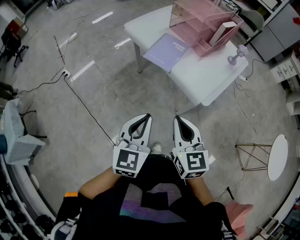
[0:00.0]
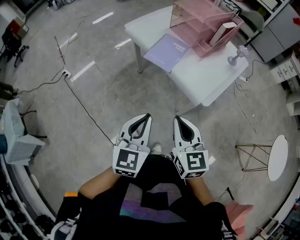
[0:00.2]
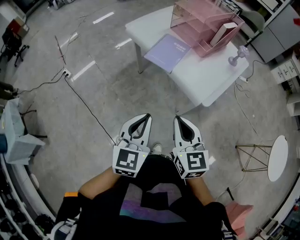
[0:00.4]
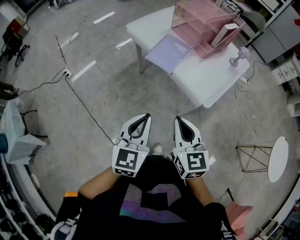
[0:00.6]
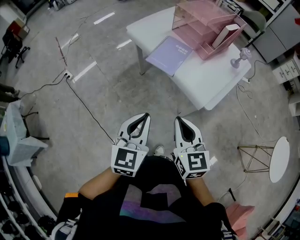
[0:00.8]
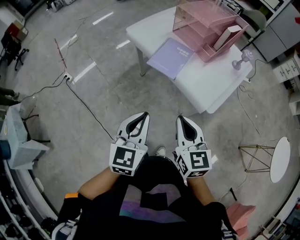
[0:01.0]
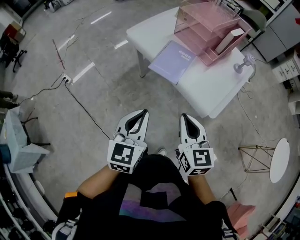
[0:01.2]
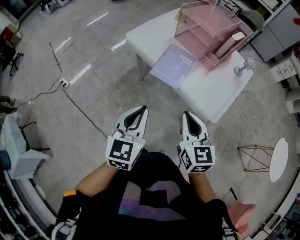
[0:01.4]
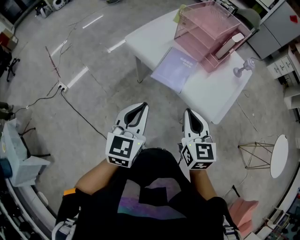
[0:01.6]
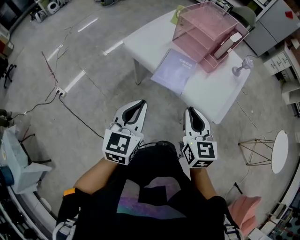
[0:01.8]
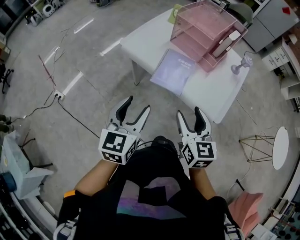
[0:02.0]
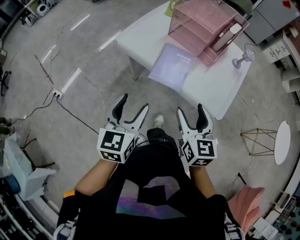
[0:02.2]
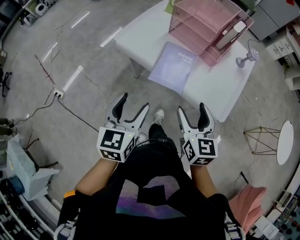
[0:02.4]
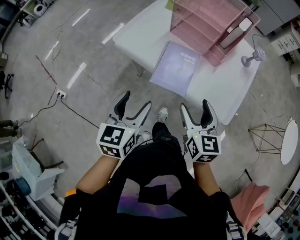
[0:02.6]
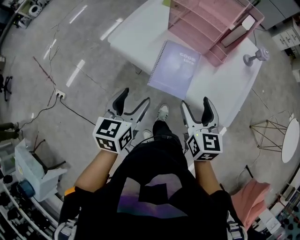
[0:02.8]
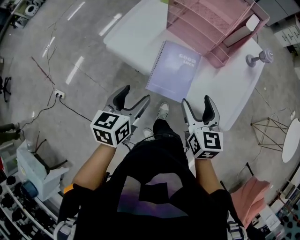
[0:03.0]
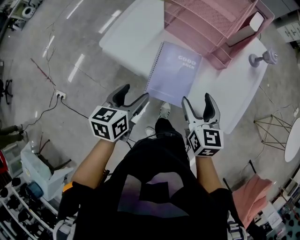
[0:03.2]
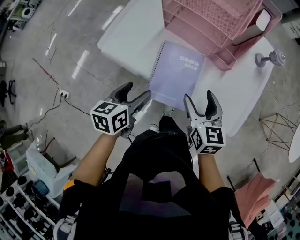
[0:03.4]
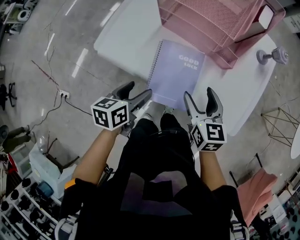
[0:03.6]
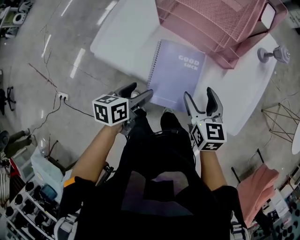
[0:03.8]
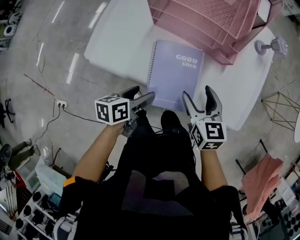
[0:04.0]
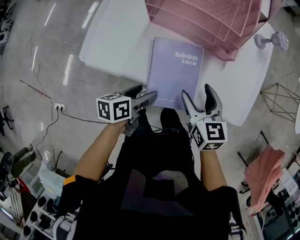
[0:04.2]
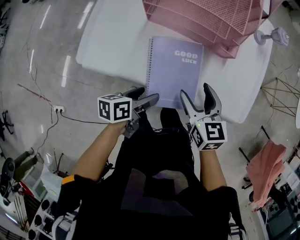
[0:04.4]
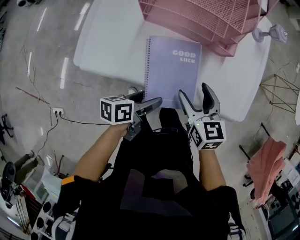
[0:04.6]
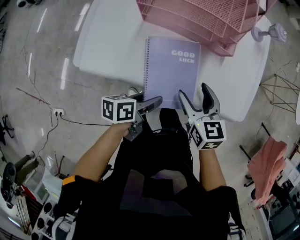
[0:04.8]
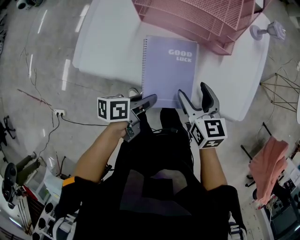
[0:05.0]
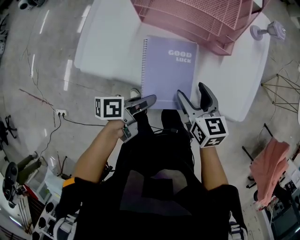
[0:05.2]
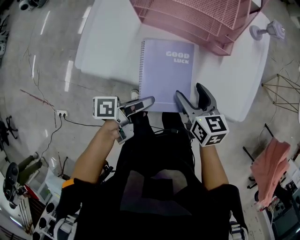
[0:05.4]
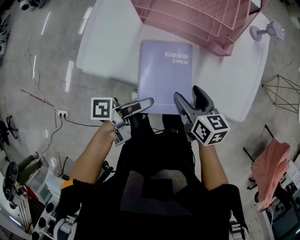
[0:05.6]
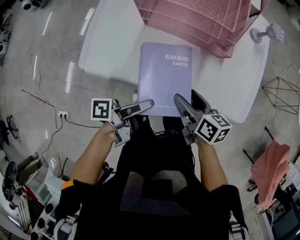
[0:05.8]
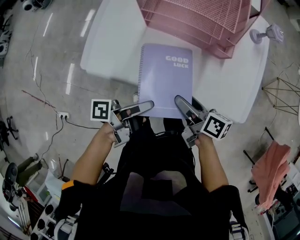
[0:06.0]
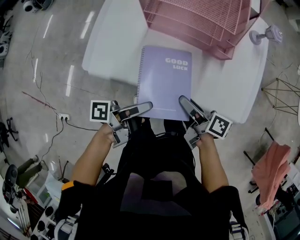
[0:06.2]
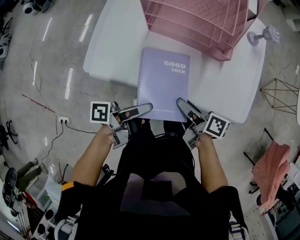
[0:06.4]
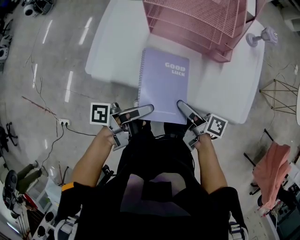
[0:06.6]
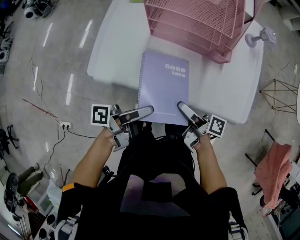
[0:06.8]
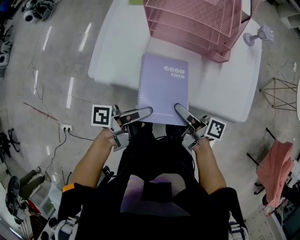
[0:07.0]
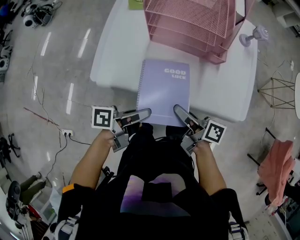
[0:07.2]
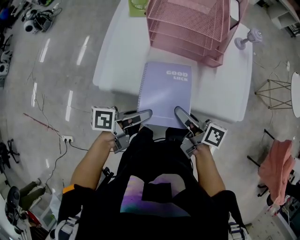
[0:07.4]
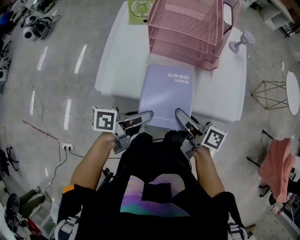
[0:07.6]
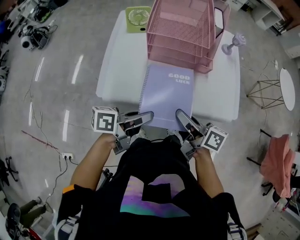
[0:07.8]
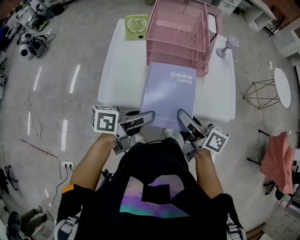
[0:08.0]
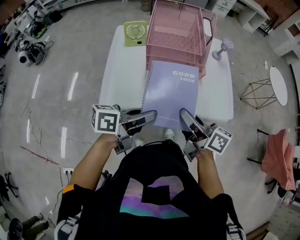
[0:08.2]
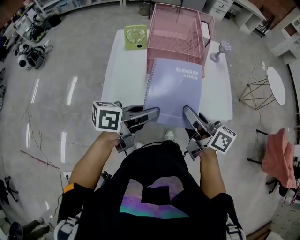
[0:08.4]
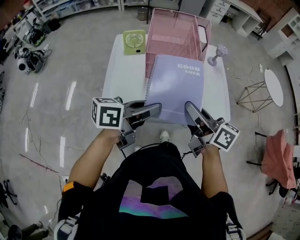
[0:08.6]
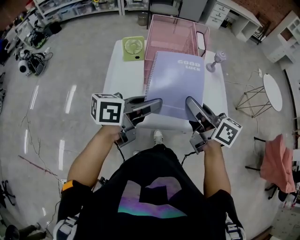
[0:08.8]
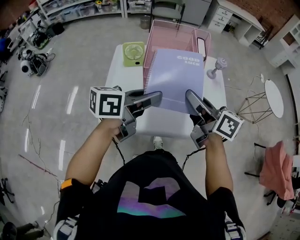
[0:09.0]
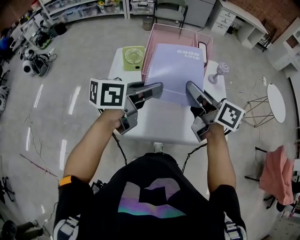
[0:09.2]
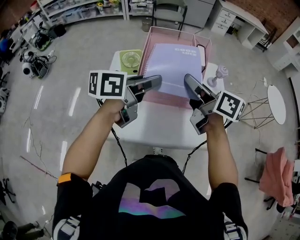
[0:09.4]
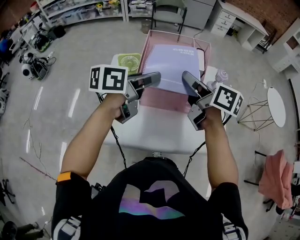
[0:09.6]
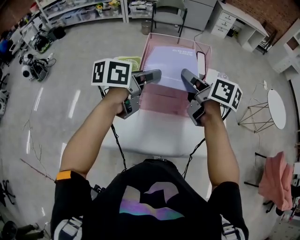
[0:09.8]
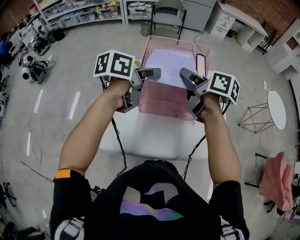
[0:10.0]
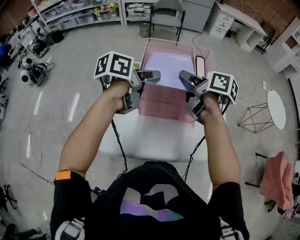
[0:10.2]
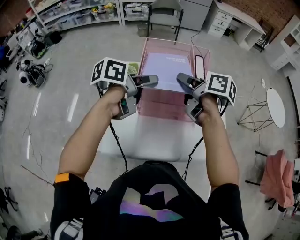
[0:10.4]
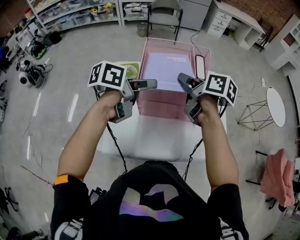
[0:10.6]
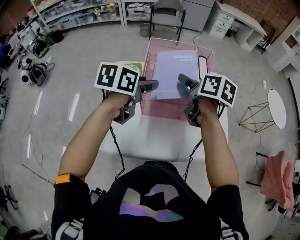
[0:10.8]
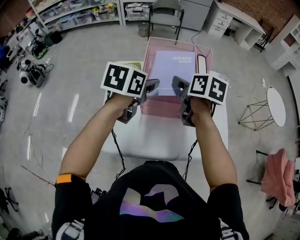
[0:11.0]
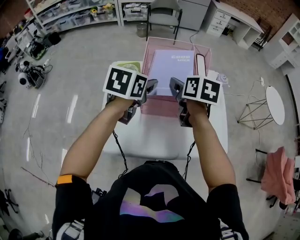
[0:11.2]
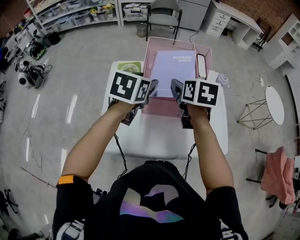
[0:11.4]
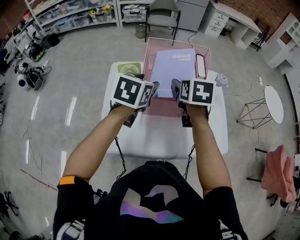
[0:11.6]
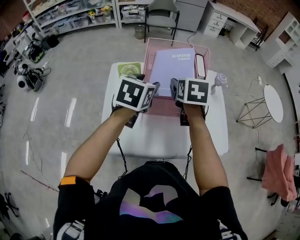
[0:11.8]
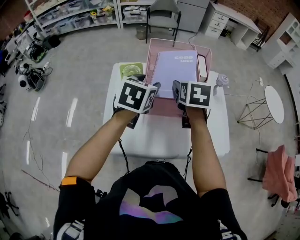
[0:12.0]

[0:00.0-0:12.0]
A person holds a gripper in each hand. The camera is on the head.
0:00.0 to 0:01.6: The right gripper shifts approximately 15 cm forward; the left gripper travels forward and to the left by roughly 20 cm.
0:01.6 to 0:03.0: Both grippers move forward and downward, approximately 20 cm. The right gripper opens up; the left gripper rotates about 30 degrees, and opens its fingers.
0:03.0 to 0:04.4: The left gripper is displaced downward by about 15 cm, and turns by some 50 degrees. The right gripper is displaced downward by about 10 cm.
0:04.4 to 0:06.0: The right gripper twists roughly 50 degrees clockwise, seen from behind; the left gripper heads upward, covering roughly 10 cm, angles its fingers upward, by approximately 30 degrees, and closes.
0:06.0 to 0:07.6: The right gripper travels upward by about 10 cm, and closes. Meanwhile the left gripper travels upward and to the left by about 10 cm, and changes its angle by approximately 30 degrees.
0:07.6 to 0:09.0: The two grippers go roughly 20 cm upward and forward. The right gripper rotates approximately 30 degrees, while the left gripper turns by approximately 30 degrees.
0:09.0 to 0:10.4: Both grippers move forward, approximately 20 cm. The right gripper turns by roughly 30 degrees. The left gripper swivels approximately 20 degrees.
0:10.4 to 0:12.0: The left gripper rotates roughly 50 degrees. The right gripper turns by about 50 degrees, and opens.

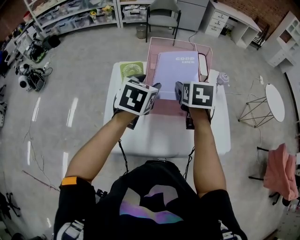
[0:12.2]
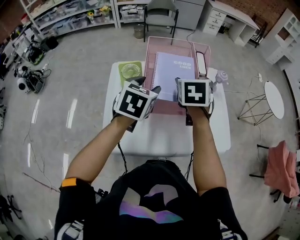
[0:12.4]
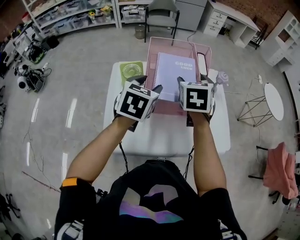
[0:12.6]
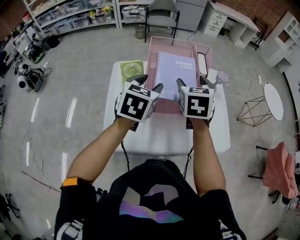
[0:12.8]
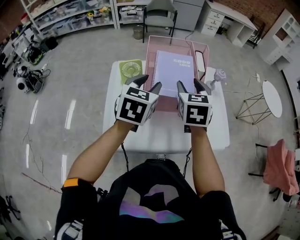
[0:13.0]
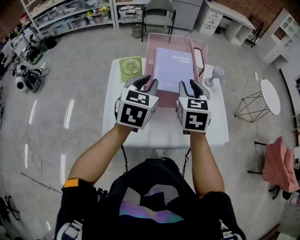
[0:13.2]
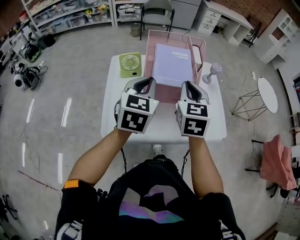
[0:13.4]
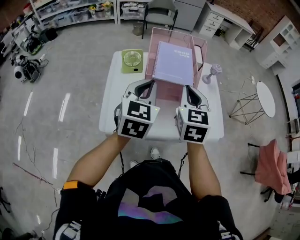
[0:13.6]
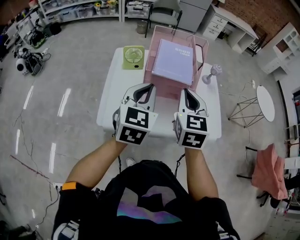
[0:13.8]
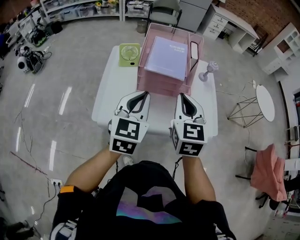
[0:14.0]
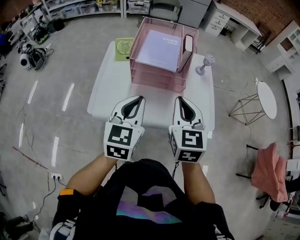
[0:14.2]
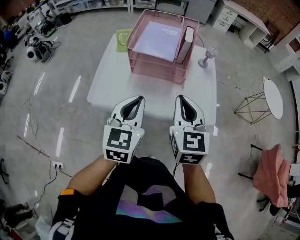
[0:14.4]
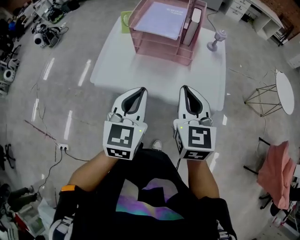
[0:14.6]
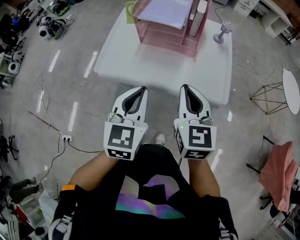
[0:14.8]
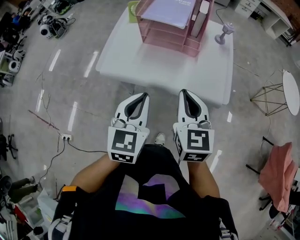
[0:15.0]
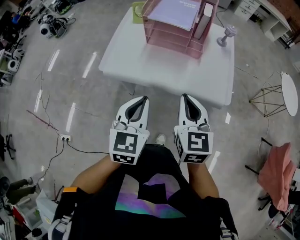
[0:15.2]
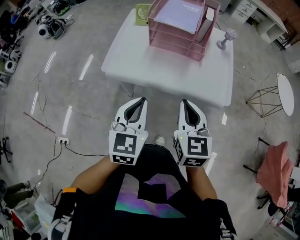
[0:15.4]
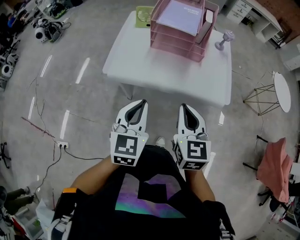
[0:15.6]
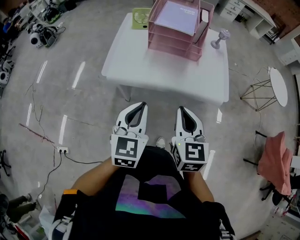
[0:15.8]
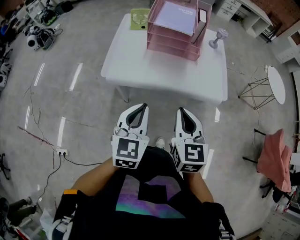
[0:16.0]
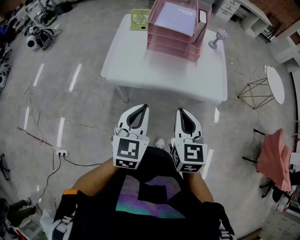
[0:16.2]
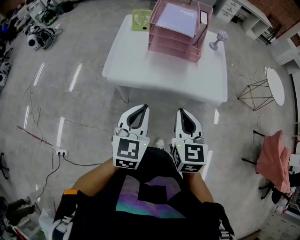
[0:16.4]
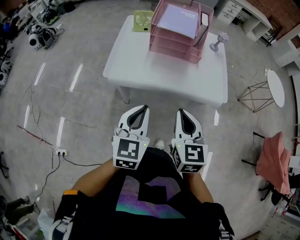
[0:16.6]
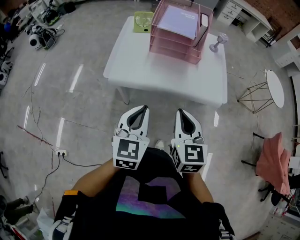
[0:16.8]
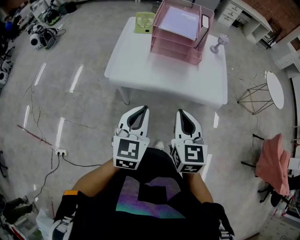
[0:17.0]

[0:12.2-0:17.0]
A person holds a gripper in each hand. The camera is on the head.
0:12.2 to 0:13.8: Both grippers move backward, approximately 15 cm. The left gripper swivels approximately 20 degrees, and closes. The right gripper swivels about 30 degrees, and closes up.
0:13.8 to 0:15.4: The grippers both shift backward by roughly 25 cm.
0:15.4 to 0:17.0: The right gripper goes roughly 10 cm backward and to the left. Meanwhile the left gripper changes place by approximately 5 cm.

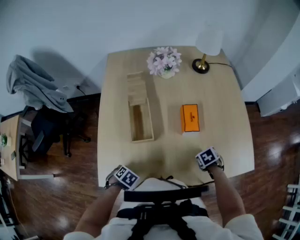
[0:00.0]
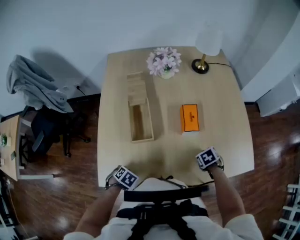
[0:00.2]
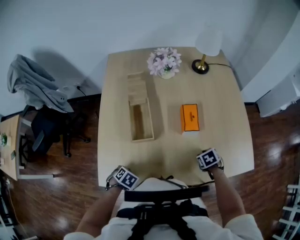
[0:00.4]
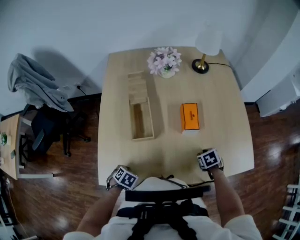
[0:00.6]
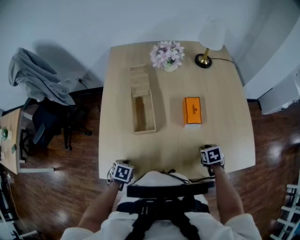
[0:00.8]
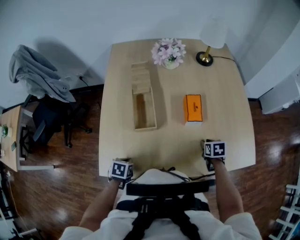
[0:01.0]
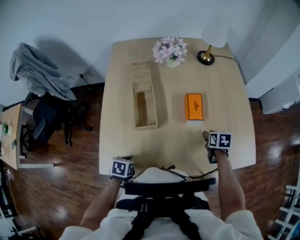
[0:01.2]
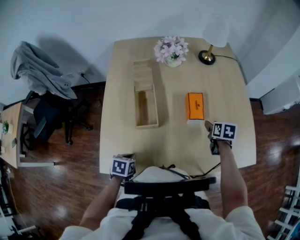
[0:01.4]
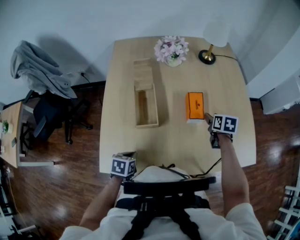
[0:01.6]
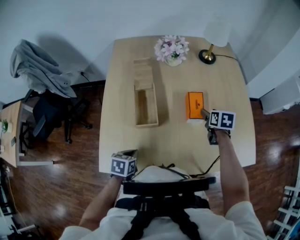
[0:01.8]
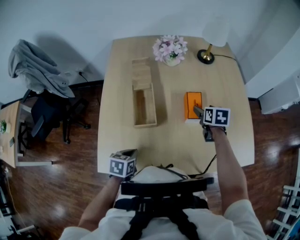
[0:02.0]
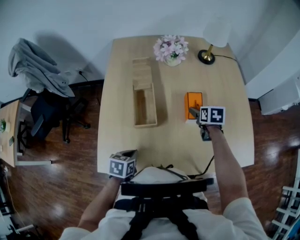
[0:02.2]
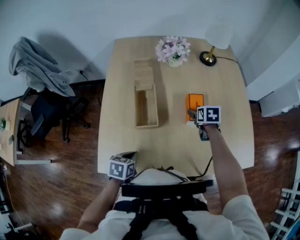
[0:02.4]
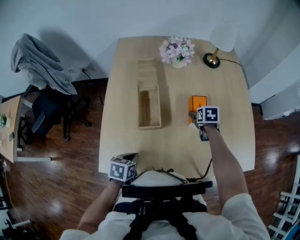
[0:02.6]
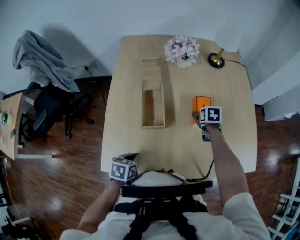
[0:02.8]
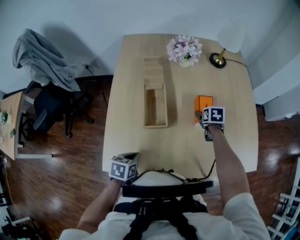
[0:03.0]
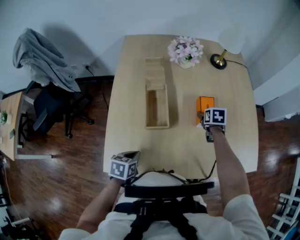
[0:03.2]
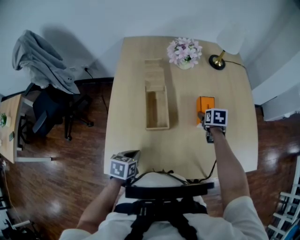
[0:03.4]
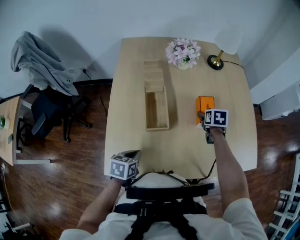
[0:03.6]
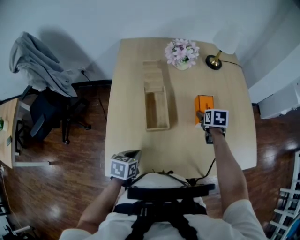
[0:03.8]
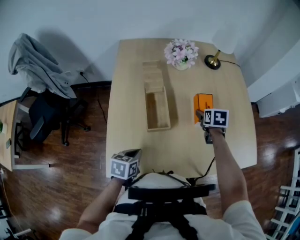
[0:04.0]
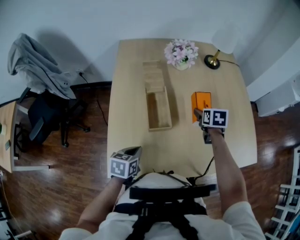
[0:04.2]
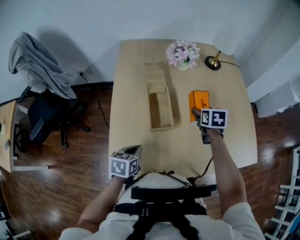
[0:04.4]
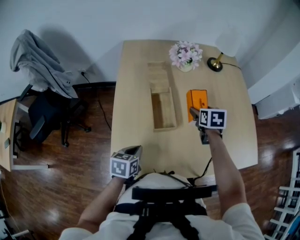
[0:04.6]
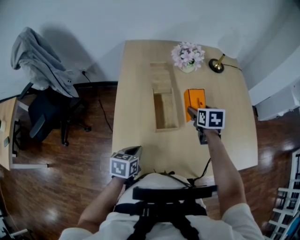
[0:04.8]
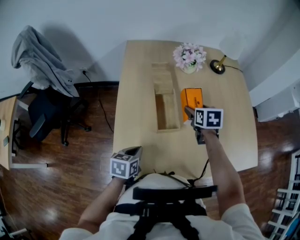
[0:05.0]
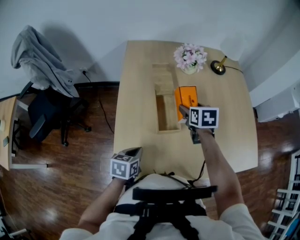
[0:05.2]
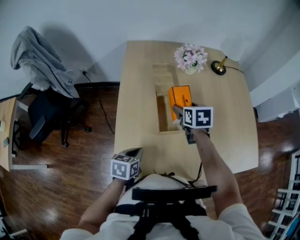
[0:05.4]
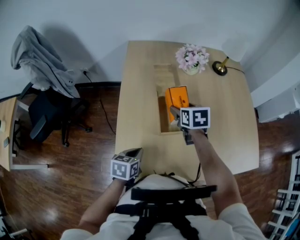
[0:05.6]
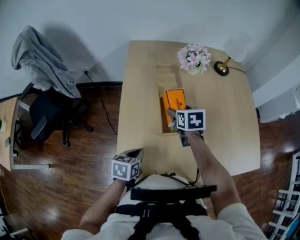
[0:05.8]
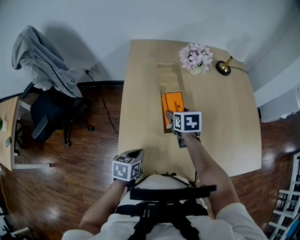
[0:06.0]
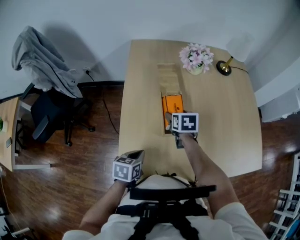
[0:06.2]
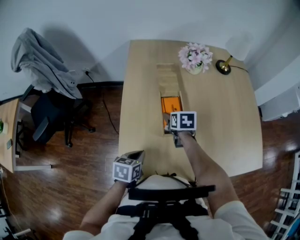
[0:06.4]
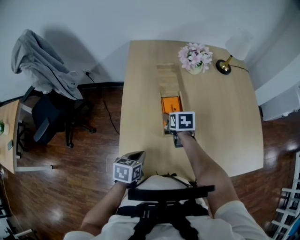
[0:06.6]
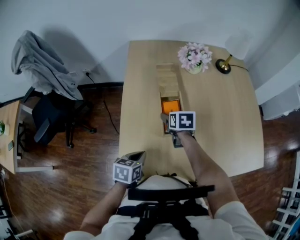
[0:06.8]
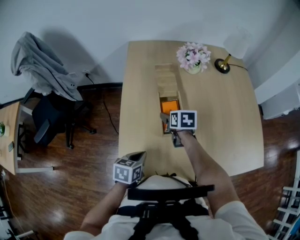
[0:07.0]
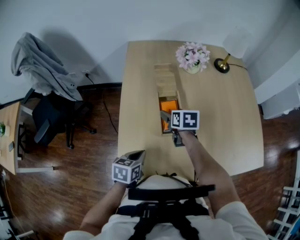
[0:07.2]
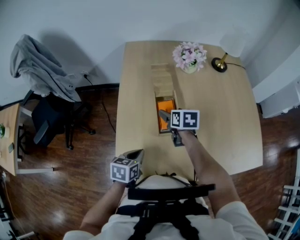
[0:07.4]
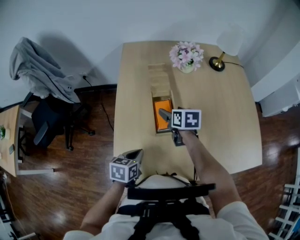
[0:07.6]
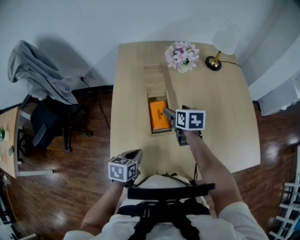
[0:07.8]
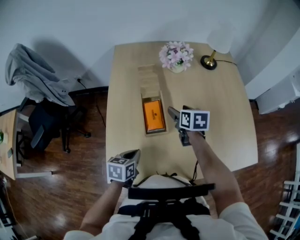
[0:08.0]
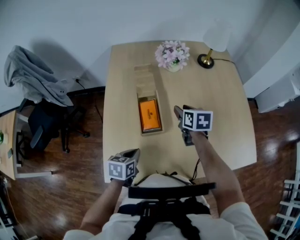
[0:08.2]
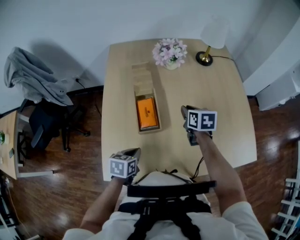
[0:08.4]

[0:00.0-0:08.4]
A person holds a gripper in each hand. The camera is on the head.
0:00.0 to 0:01.4: The right gripper ends up approximately 15 cm from where it was, and points its fingers some 30 degrees further upward. Meanwhile the left gripper changes its angle by about 40 degrees.
0:01.4 to 0:02.8: The right gripper shifts roughly 10 cm to the left and forward, and opens up.
0:02.8 to 0:04.2: The right gripper shifts some 10 cm upward; the left gripper ends up roughly 5 cm from where it was.
0:04.2 to 0:05.6: The right gripper is displaced to the left by some 20 cm.
0:05.6 to 0:07.0: The right gripper shifts approximately 5 cm downward.
0:07.0 to 0:08.4: The right gripper is displaced to the right by some 20 cm, and closes. The left gripper is displaced to the right by approximately 5 cm.
